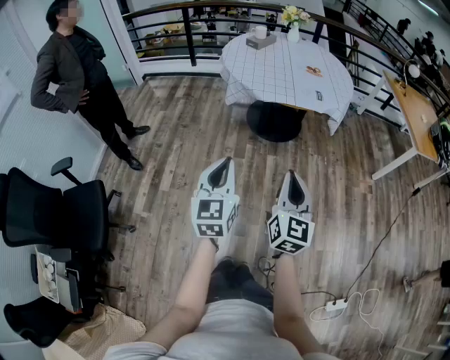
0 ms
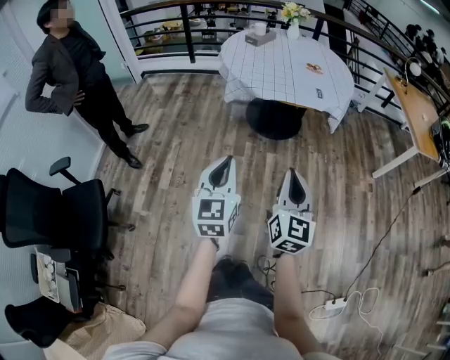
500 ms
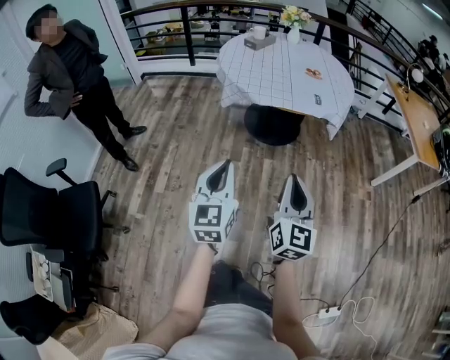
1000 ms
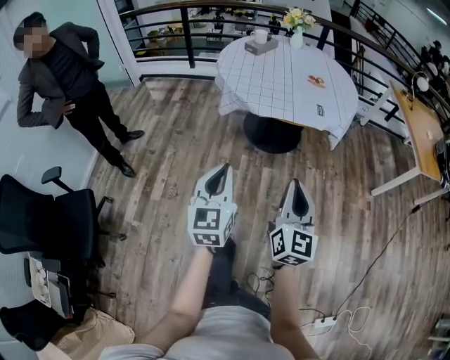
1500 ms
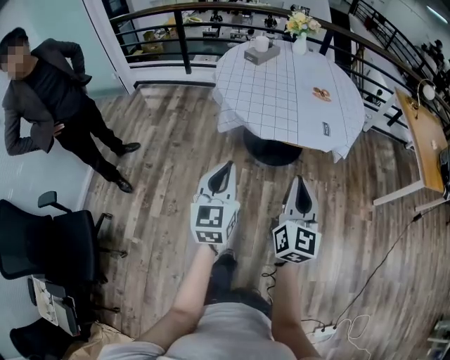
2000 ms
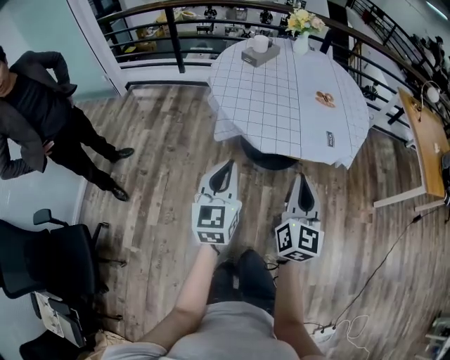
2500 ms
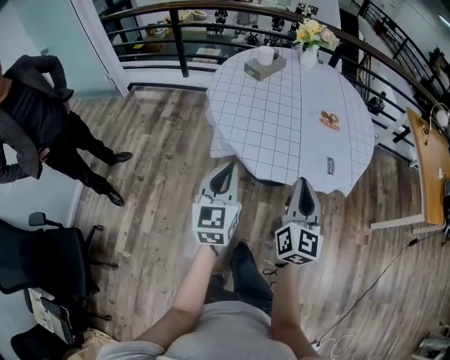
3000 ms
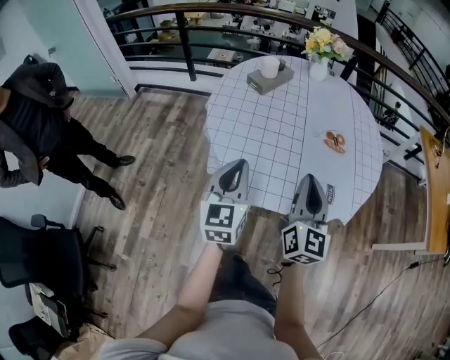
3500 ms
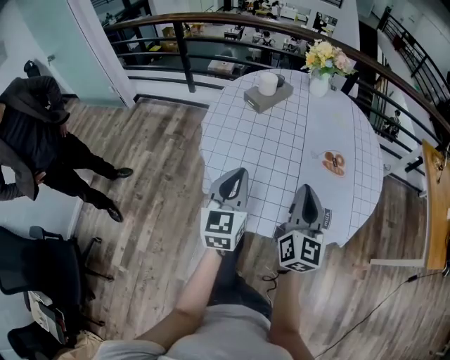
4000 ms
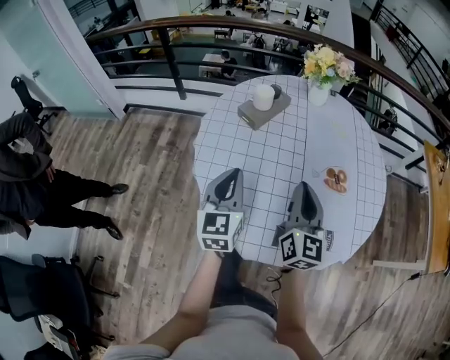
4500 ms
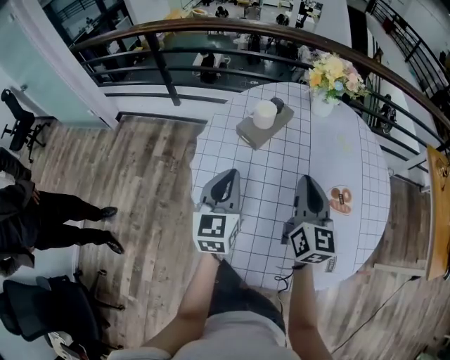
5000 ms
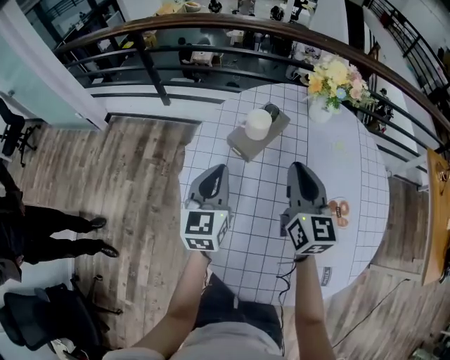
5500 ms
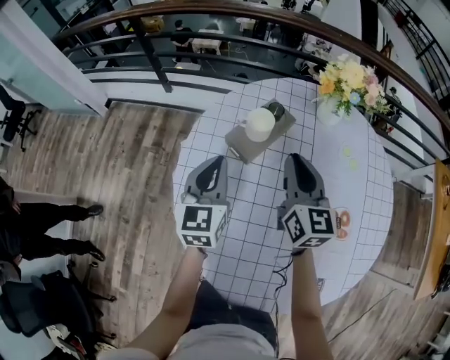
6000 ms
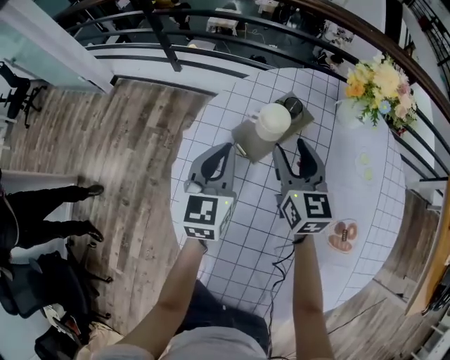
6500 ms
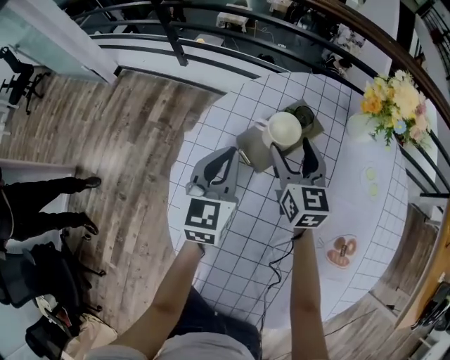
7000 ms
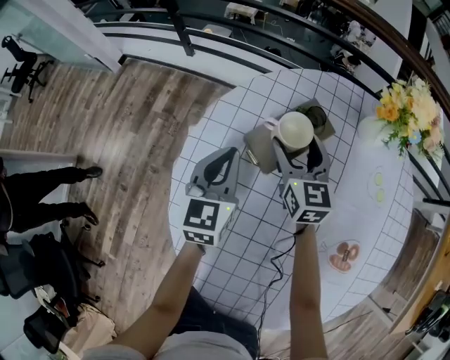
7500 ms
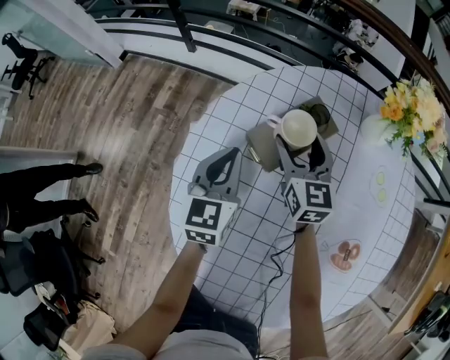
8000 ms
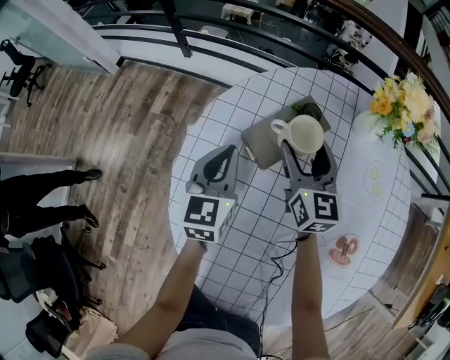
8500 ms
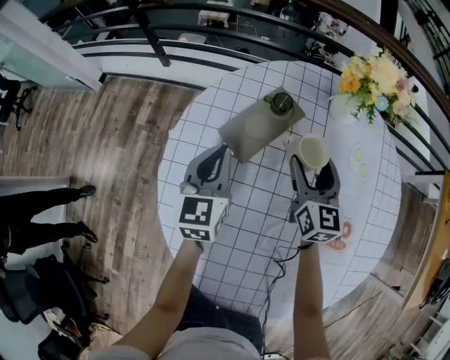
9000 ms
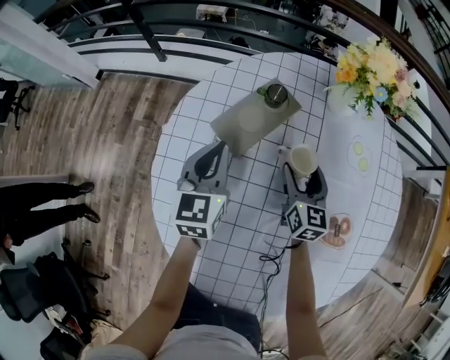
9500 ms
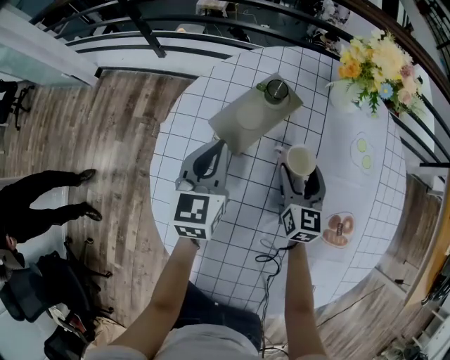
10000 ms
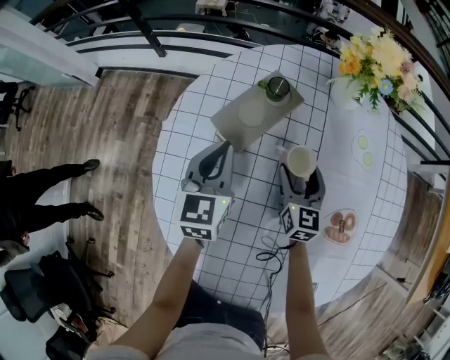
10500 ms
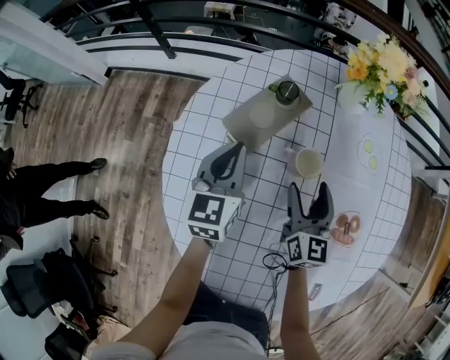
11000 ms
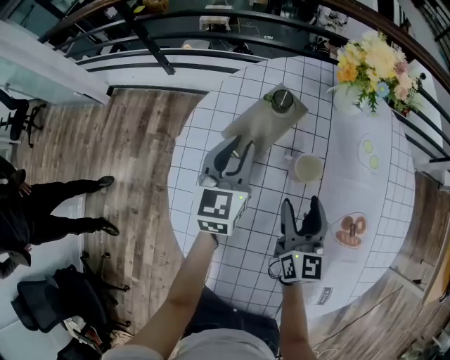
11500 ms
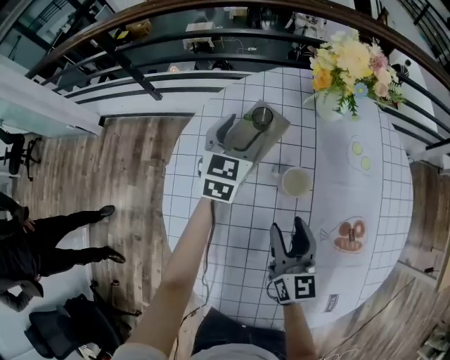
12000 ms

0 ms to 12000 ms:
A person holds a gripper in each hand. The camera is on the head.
0 ms to 2000 ms: Both grippers move forward, approximately 25 cm.
2000 ms to 4000 ms: Both grippers are carried forward, some 40 cm.
4000 ms to 6000 ms: The grippers both shift forward by some 40 cm.
6000 ms to 8000 ms: The right gripper travels forward and downward by approximately 20 cm, and opens its fingers. Meanwhile the left gripper goes roughly 10 cm downward and forward.
8000 ms to 10000 ms: The left gripper travels to the right by about 5 cm; the right gripper moves to the right, backward and downward, approximately 20 cm.
10000 ms to 12000 ms: The left gripper travels forward and to the right by some 15 cm, swivels approximately 20 degrees, and opens its fingers. The right gripper shifts roughly 15 cm backward and upward.

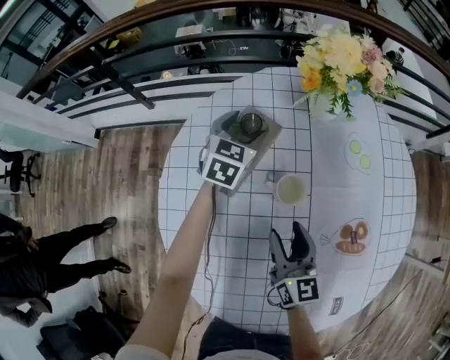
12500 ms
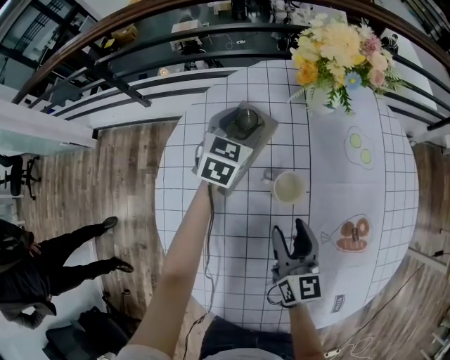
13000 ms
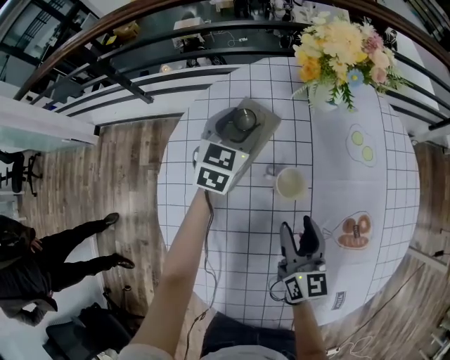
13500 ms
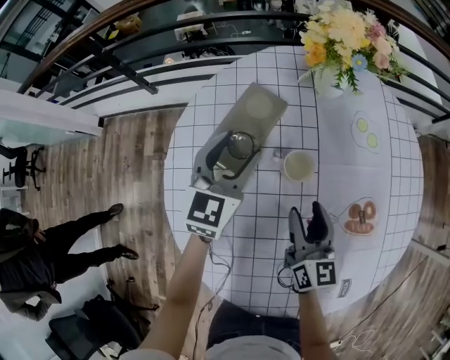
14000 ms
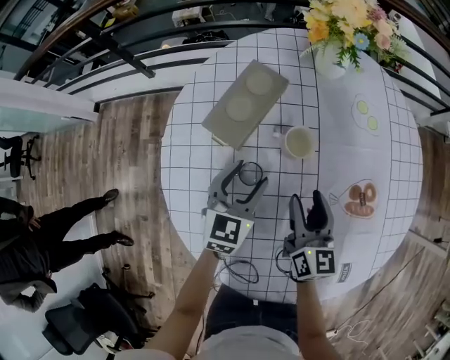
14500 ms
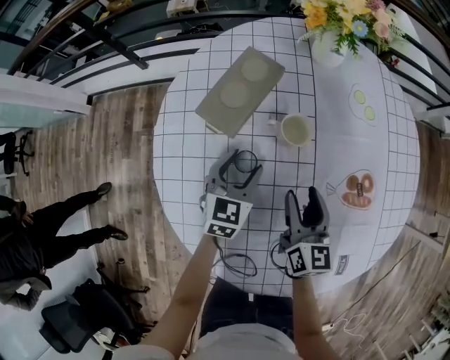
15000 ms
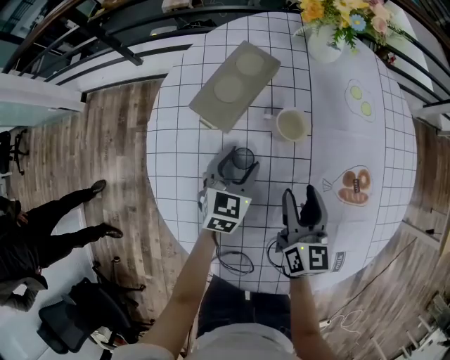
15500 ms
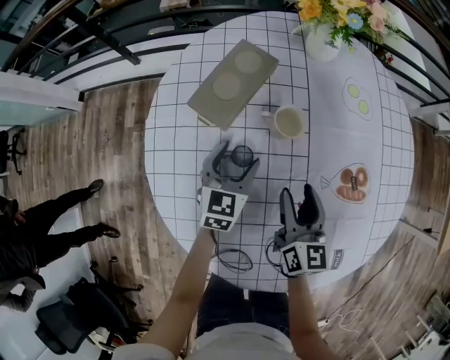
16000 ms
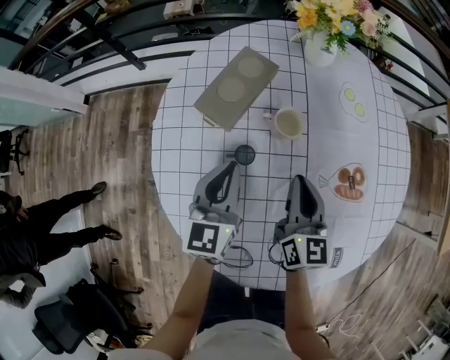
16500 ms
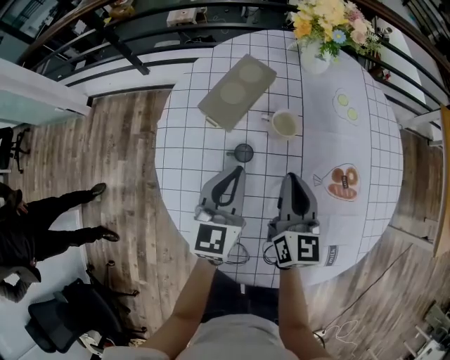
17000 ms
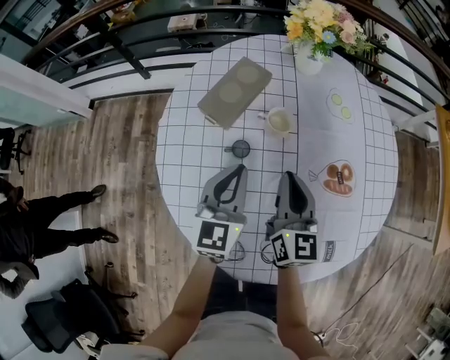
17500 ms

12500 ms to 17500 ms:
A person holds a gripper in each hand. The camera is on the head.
12500 ms to 15000 ms: The left gripper moves backward, about 25 cm, while the right gripper moves about 5 cm.
15000 ms to 17500 ms: The right gripper moves upward, roughly 10 cm, and closes, while the left gripper shifts approximately 15 cm upward and backward, changes its angle by about 20 degrees, and closes up.

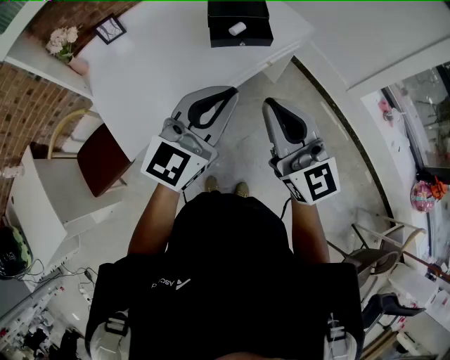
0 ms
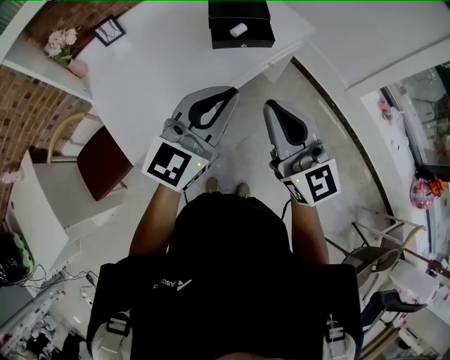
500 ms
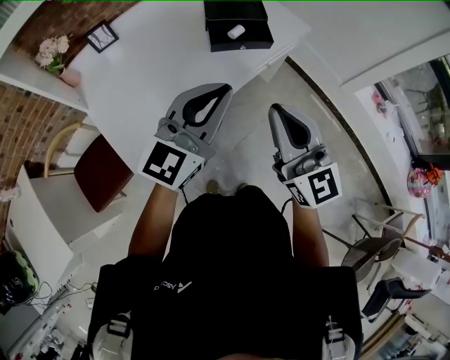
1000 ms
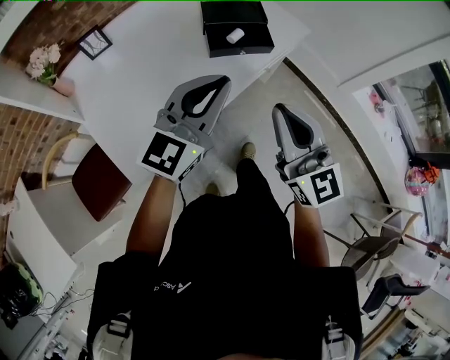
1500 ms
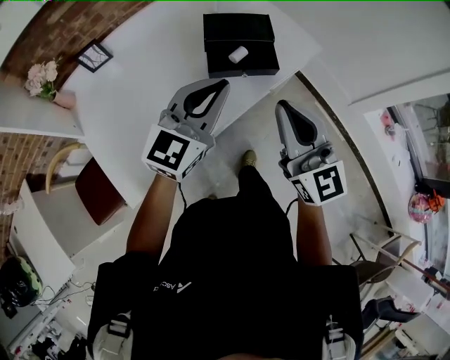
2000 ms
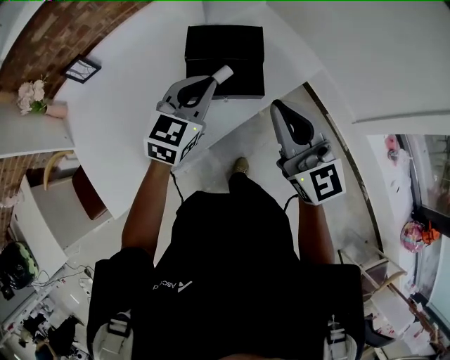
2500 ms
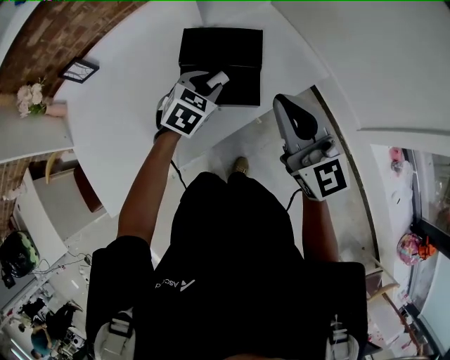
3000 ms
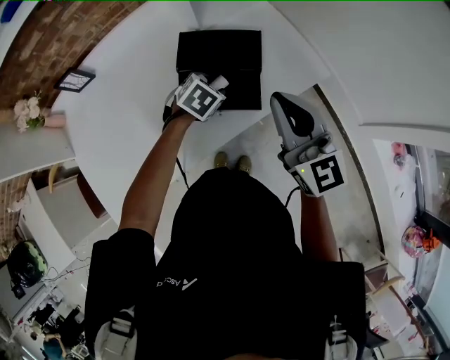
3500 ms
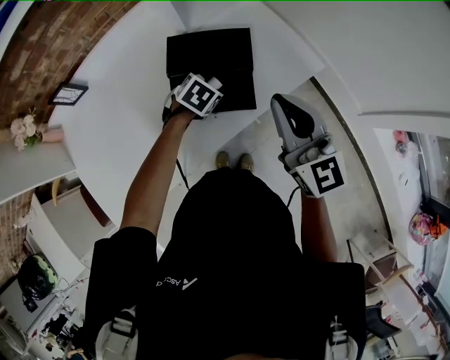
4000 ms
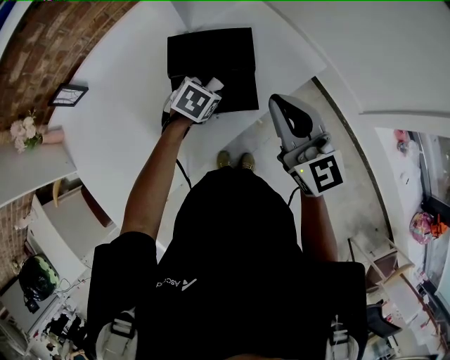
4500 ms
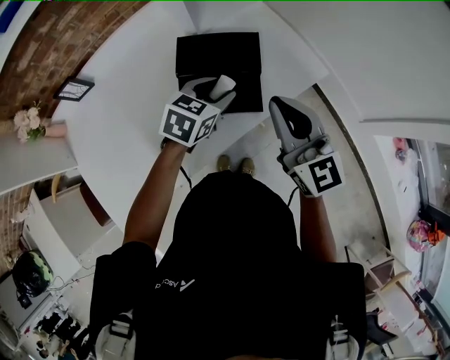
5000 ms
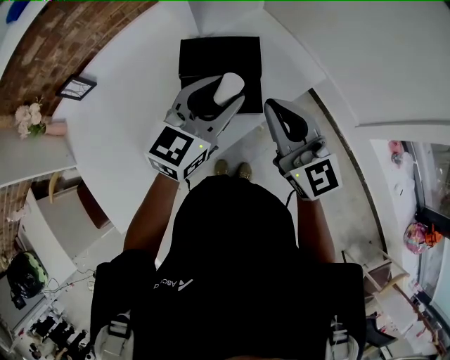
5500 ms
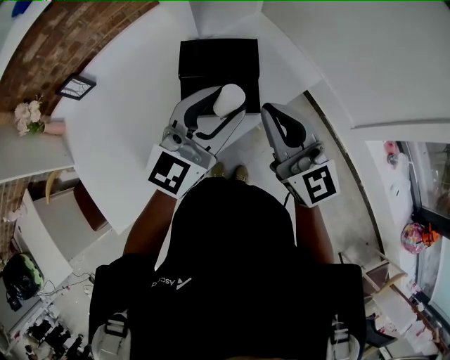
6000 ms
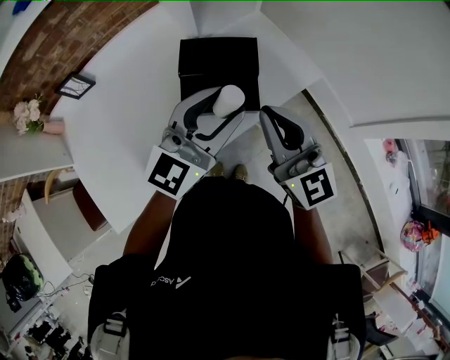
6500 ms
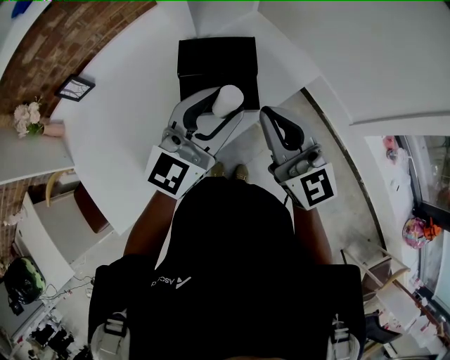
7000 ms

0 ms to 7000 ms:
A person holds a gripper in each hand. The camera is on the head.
0 ms to 2000 ms: Both grippers travel together forward, some 20 cm.
2000 ms to 3500 ms: The left gripper travels downward and forward by roughly 35 cm, angles its fingers downward, by about 60 degrees, and opens. Meanwhile the right gripper is displaced forward and to the right by some 25 cm.
3500 ms to 5000 ms: The left gripper is displaced upward by about 10 cm, and rotates approximately 20 degrees.
5000 ms to 7000 ms: The left gripper is displaced upward and backward by approximately 20 cm, and tilts its fingers about 40 degrees upward. Meanwhile the right gripper heads backward, covering approximately 5 cm.

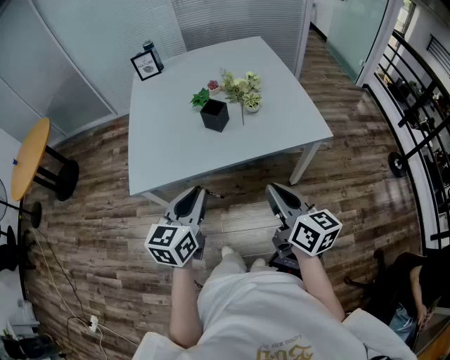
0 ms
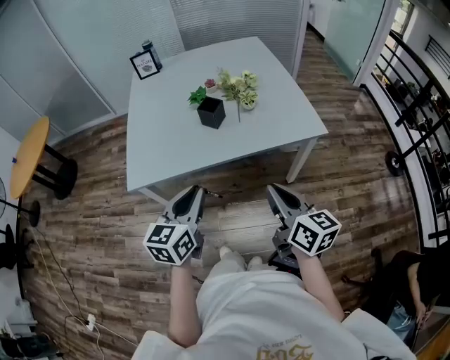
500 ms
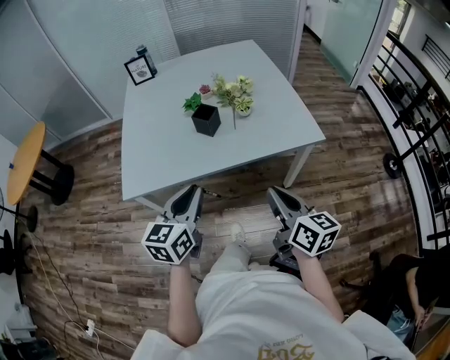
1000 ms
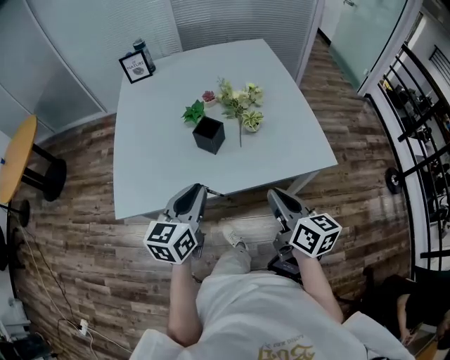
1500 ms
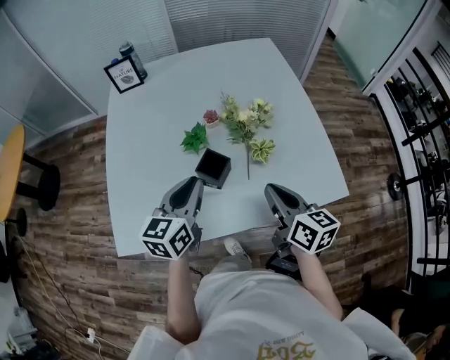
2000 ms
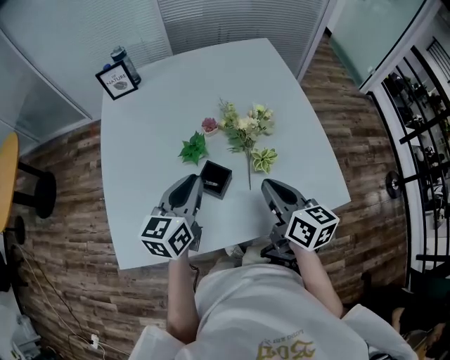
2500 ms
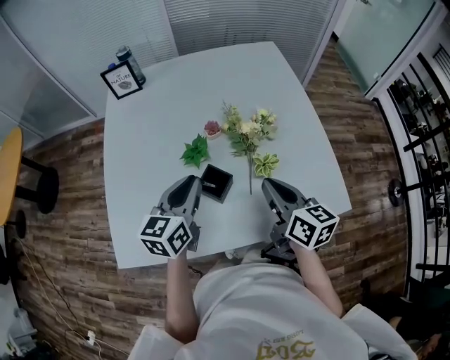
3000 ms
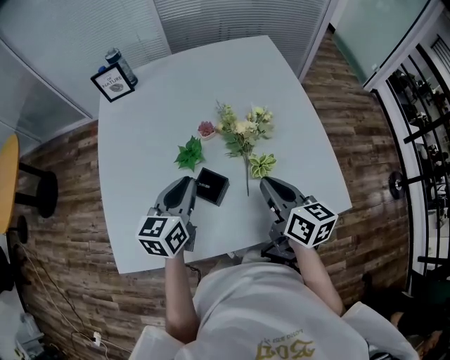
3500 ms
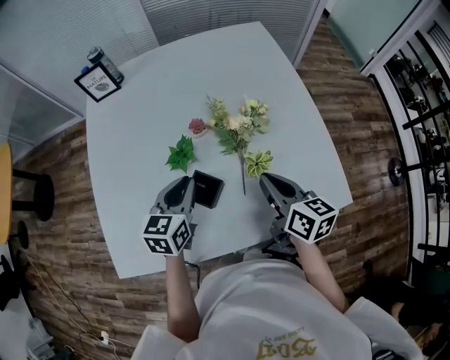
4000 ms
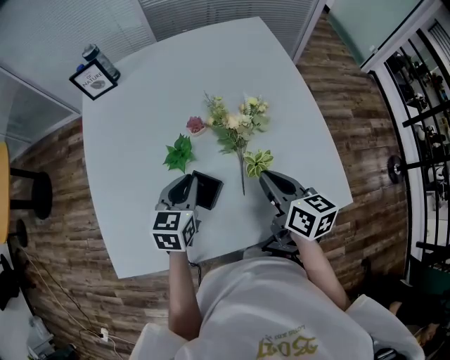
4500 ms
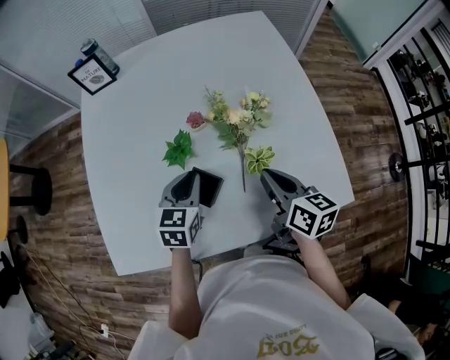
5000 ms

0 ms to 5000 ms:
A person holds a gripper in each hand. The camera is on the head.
0 ms to 2500 ms: The grippers both shift forward by about 40 cm.
2500 ms to 5000 ms: The right gripper moves forward and downward, roughly 10 cm. Meanwhile the left gripper moves downward and forward, some 15 cm, and rotates some 20 degrees.
